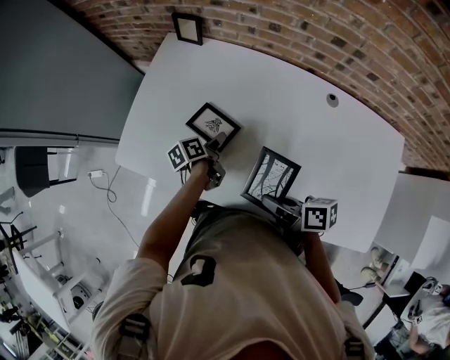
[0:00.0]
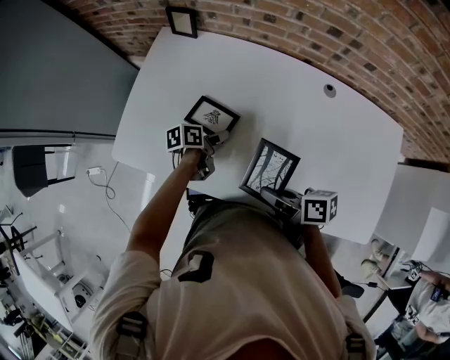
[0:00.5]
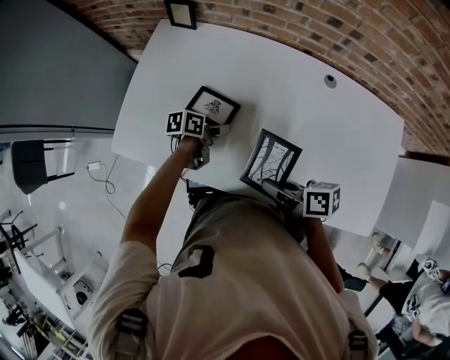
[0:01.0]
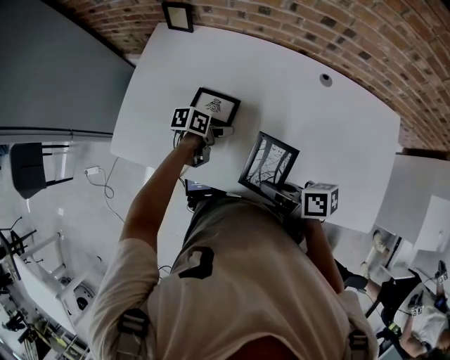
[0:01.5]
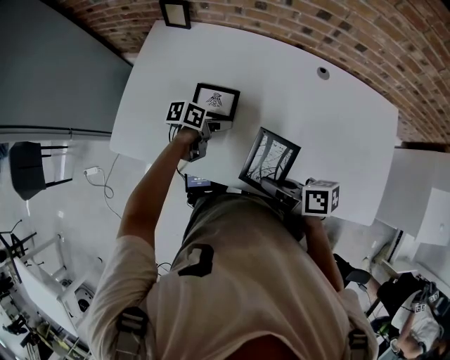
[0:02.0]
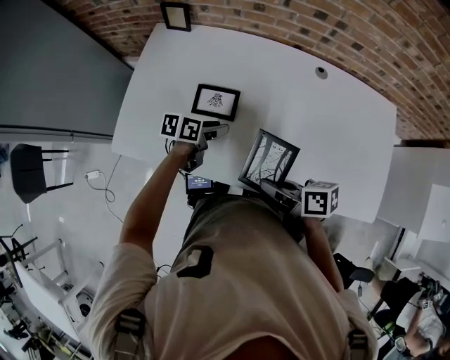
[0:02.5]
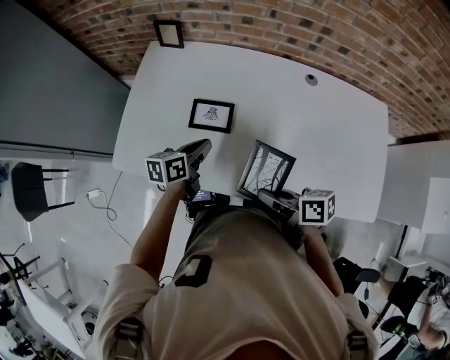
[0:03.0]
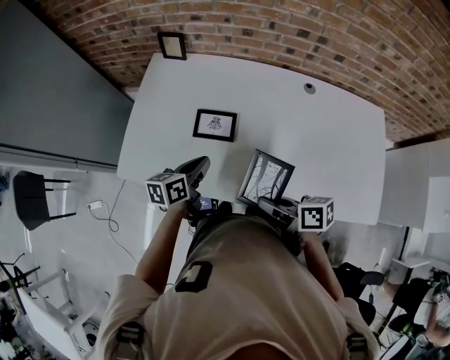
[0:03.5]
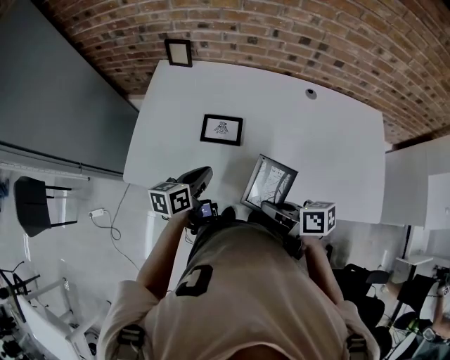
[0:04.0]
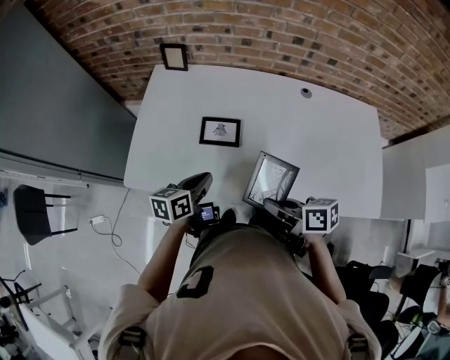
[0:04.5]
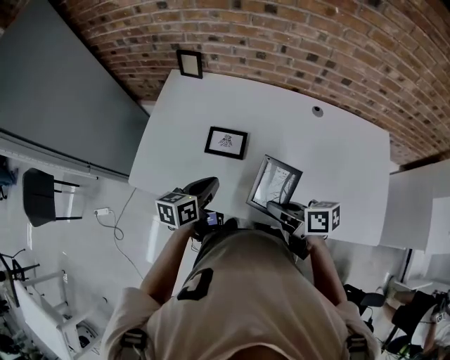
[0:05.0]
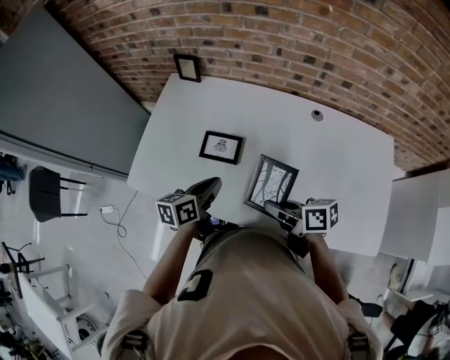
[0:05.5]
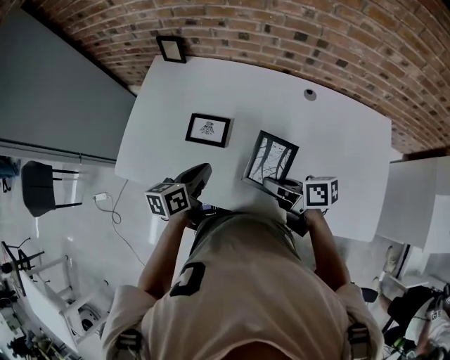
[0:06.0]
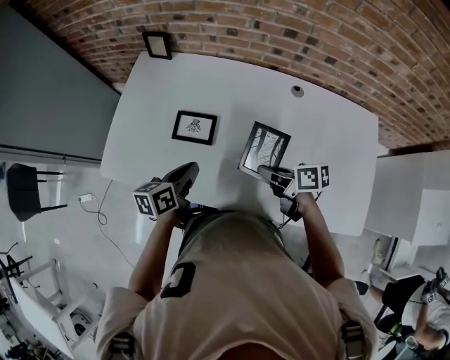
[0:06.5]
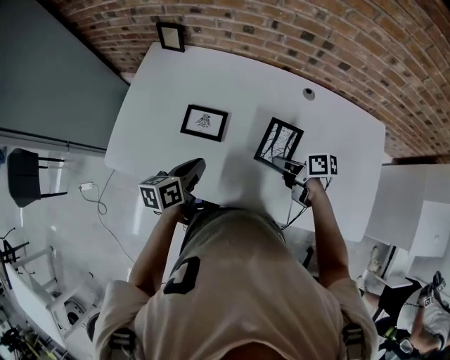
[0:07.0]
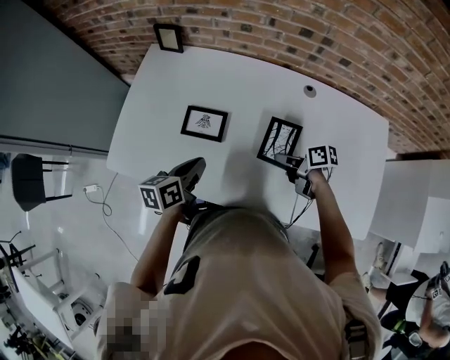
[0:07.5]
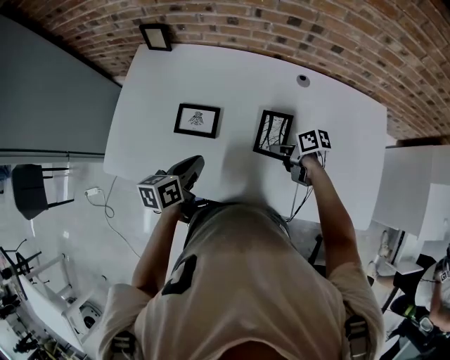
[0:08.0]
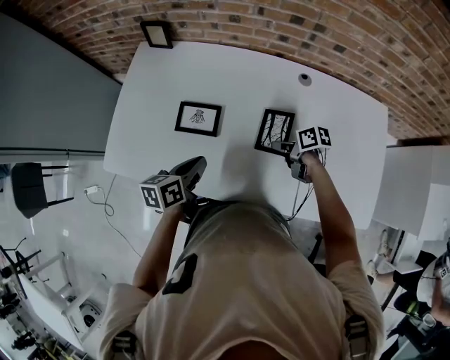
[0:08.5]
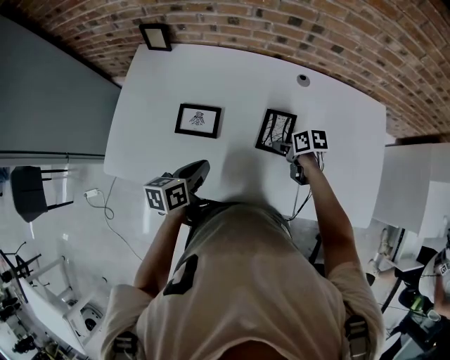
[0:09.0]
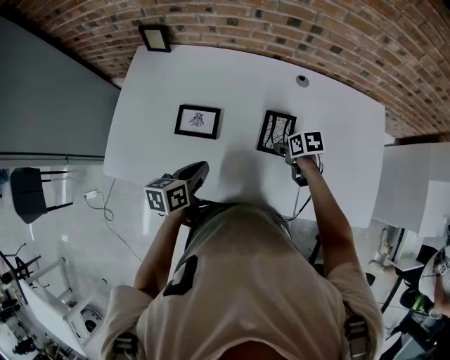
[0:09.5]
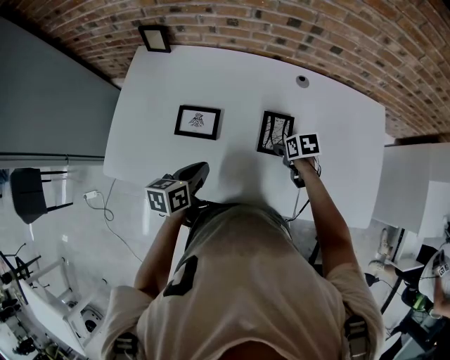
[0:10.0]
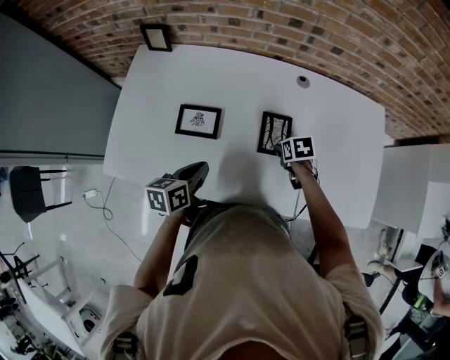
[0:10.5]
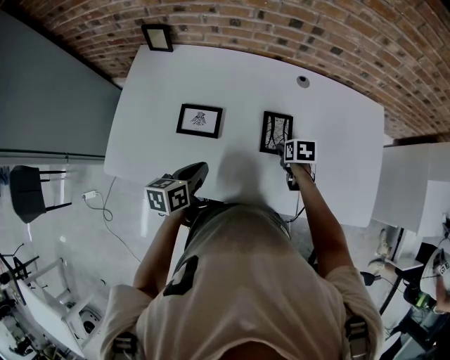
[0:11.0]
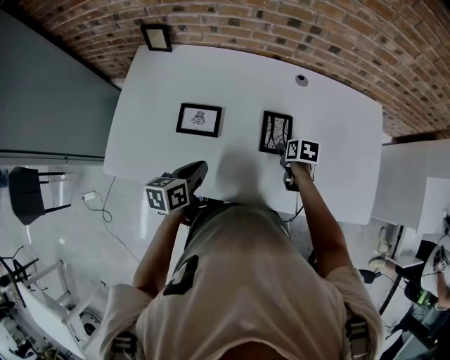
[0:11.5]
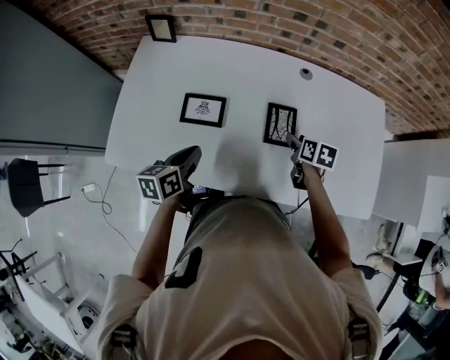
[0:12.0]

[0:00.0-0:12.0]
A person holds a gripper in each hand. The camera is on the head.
0:00.0 to 0:02.0: The left gripper moves some 5 cm, and swivels approximately 40 degrees.
0:02.0 to 0:04.0: The right gripper changes place by roughly 5 cm, while the left gripper ends up about 15 cm from where it was, changes its angle by some 30 degrees, and closes up.
0:04.0 to 0:06.0: The right gripper heads to the right and forward, covering approximately 15 cm. Meanwhile the left gripper is displaced to the right by approximately 10 cm.
0:06.0 to 0:08.0: The right gripper moves downward, to the right and forward, roughly 15 cm, and swivels about 20 degrees.
0:08.0 to 0:10.0: The right gripper shifts by about 5 cm, changes its angle by some 40 degrees, and opens its fingers.
0:10.0 to 0:12.0: The right gripper is displaced upward by about 5 cm, and turns by approximately 30 degrees.

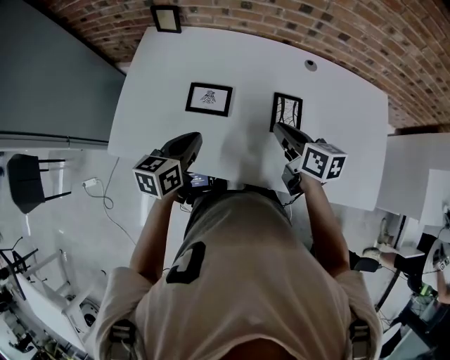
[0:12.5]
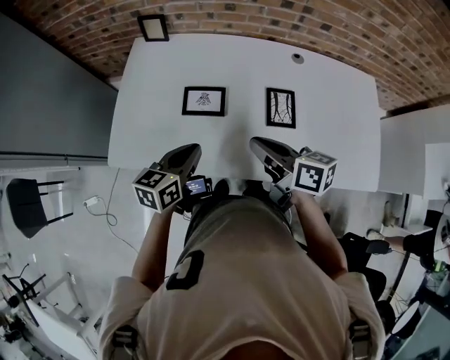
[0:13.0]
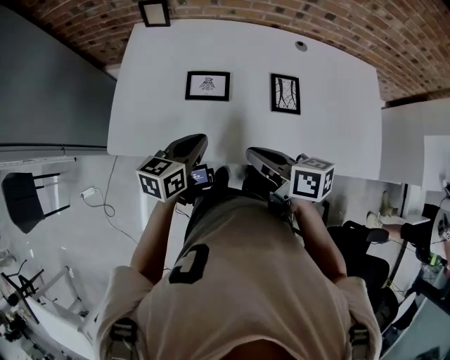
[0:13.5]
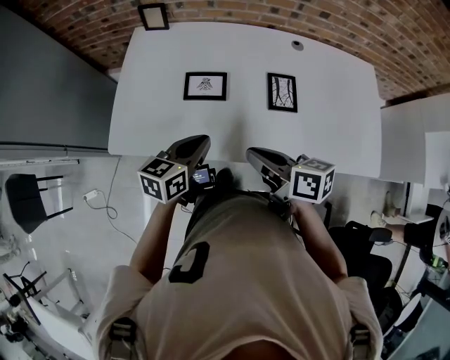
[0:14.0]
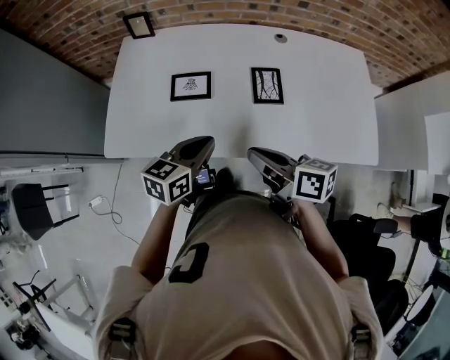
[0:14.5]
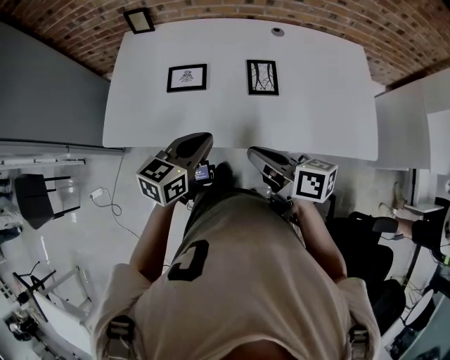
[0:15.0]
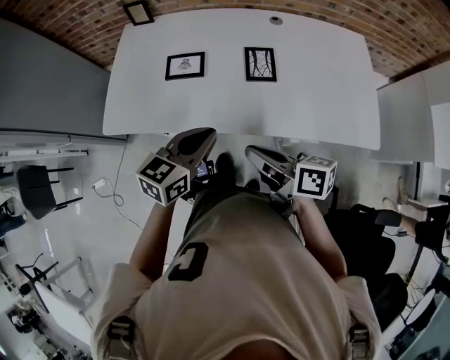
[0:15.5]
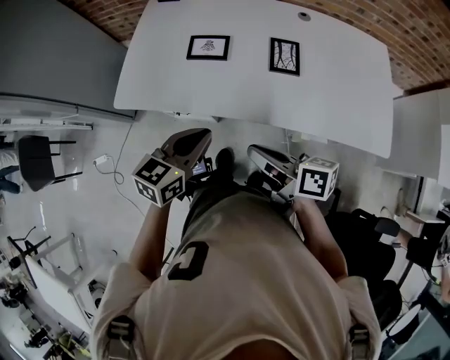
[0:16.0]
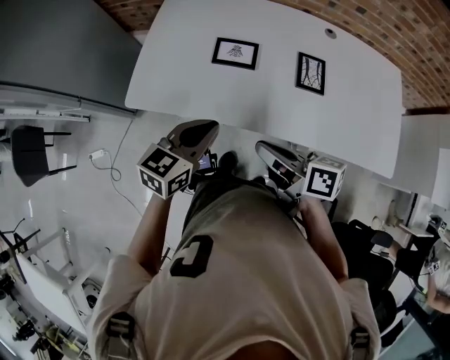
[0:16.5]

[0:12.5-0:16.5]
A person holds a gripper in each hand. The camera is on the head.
0:12.5 to 0:14.5: The left gripper heads backward and to the right, covering some 10 cm; the right gripper goes some 15 cm backward.
0:14.5 to 0:16.5: The two grippers go approximately 10 cm to the left.

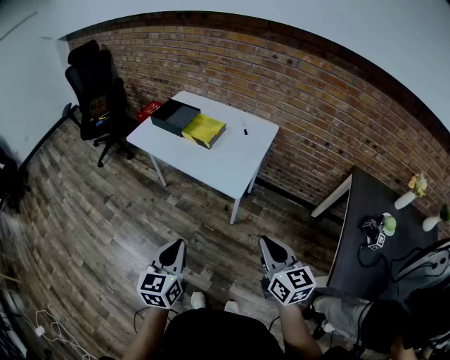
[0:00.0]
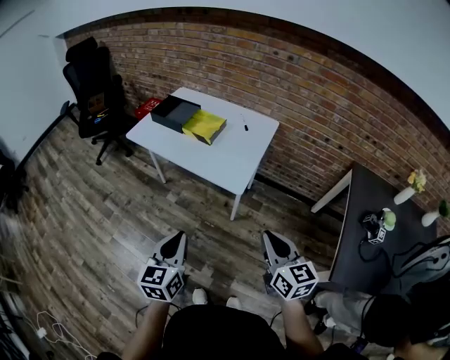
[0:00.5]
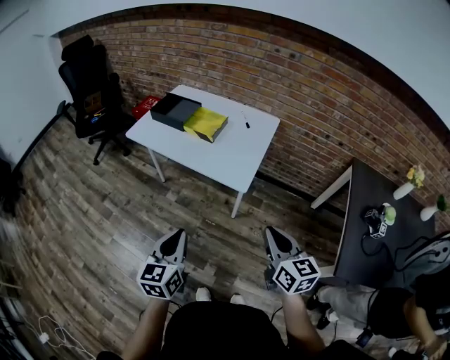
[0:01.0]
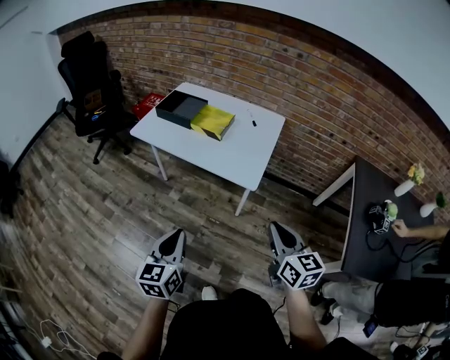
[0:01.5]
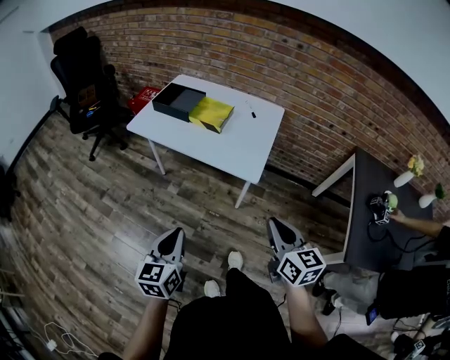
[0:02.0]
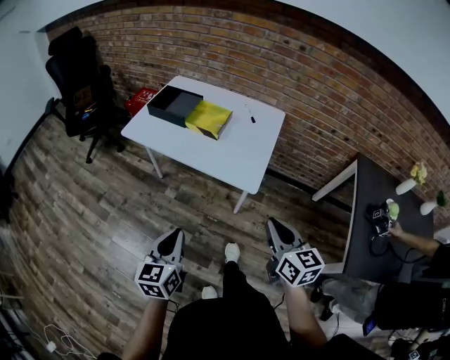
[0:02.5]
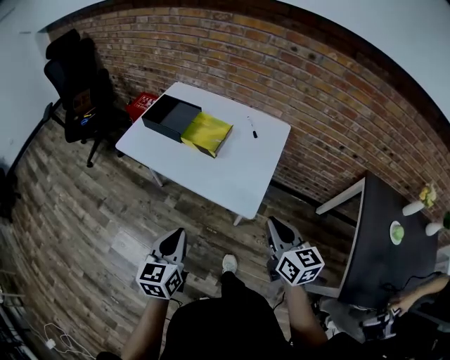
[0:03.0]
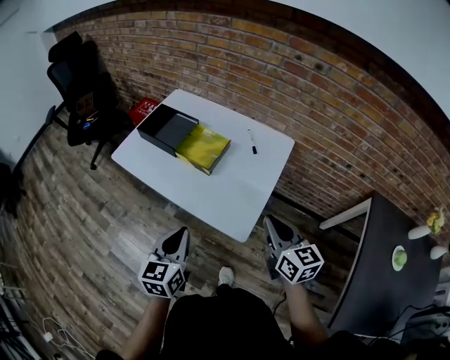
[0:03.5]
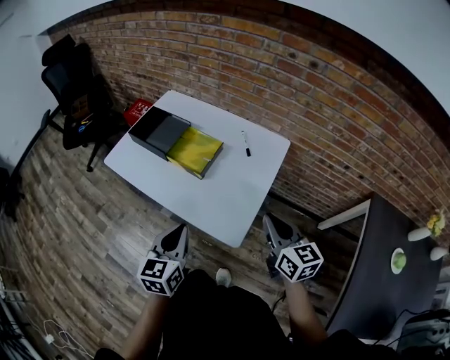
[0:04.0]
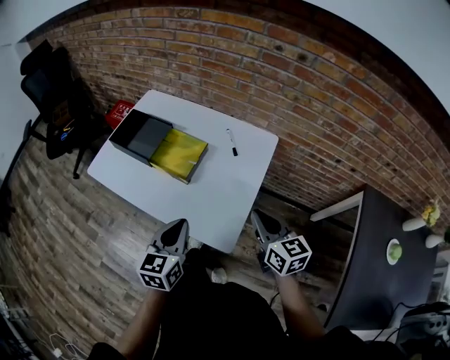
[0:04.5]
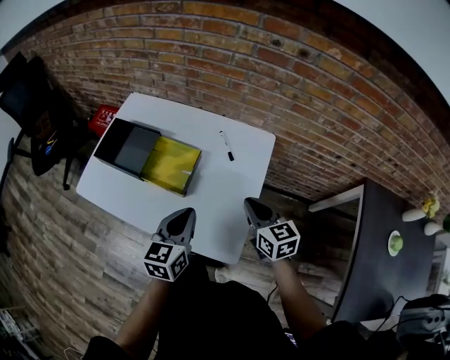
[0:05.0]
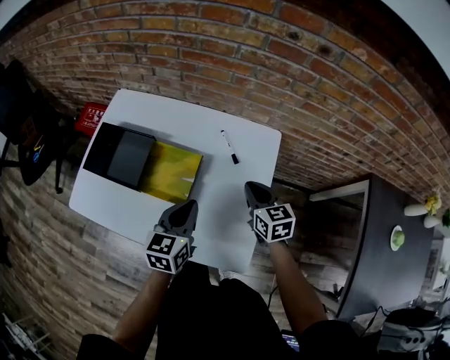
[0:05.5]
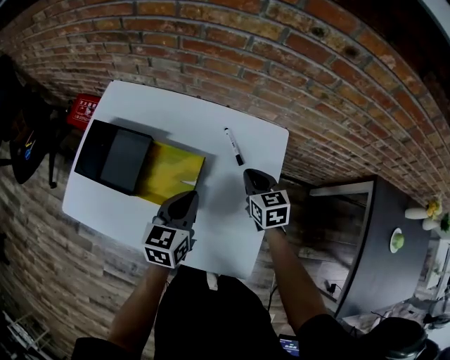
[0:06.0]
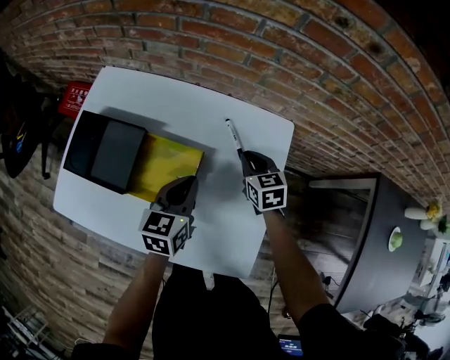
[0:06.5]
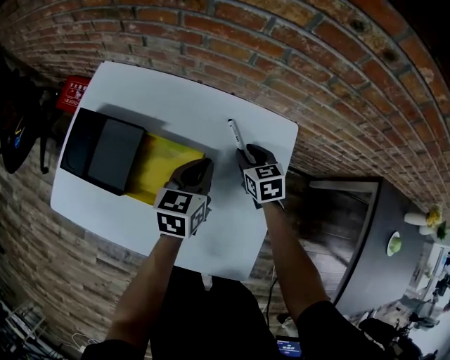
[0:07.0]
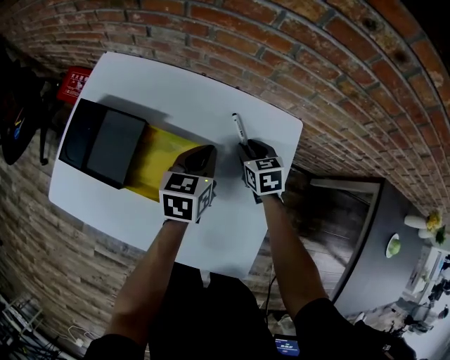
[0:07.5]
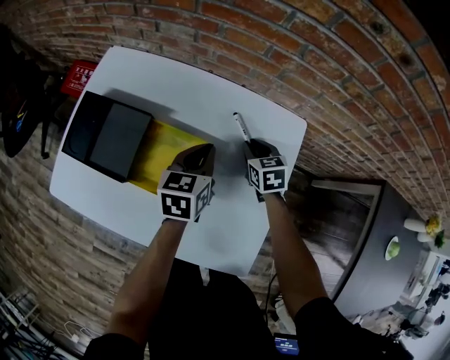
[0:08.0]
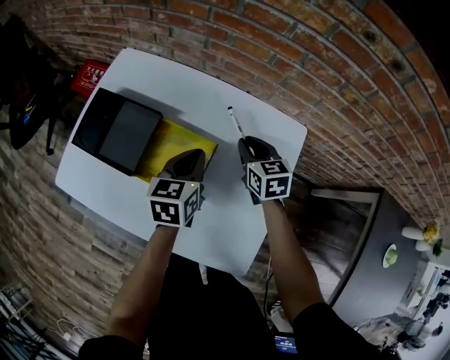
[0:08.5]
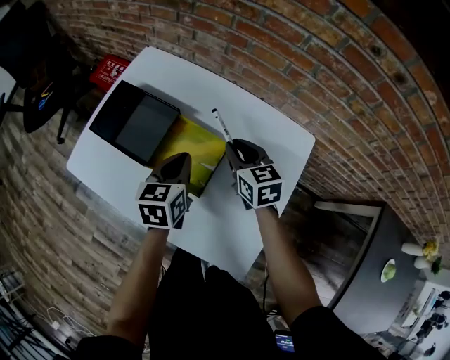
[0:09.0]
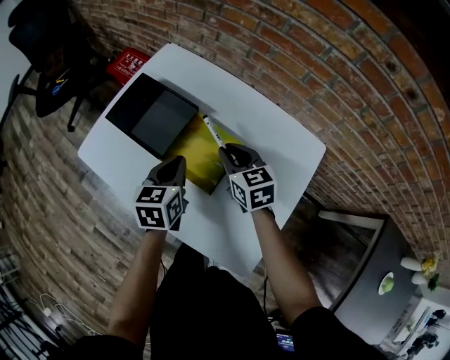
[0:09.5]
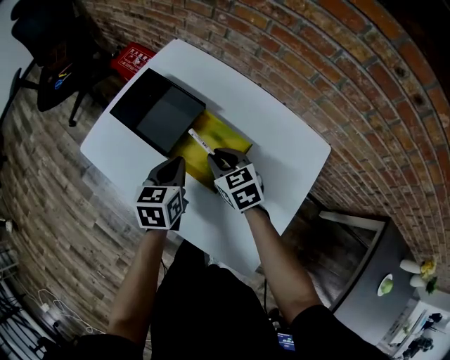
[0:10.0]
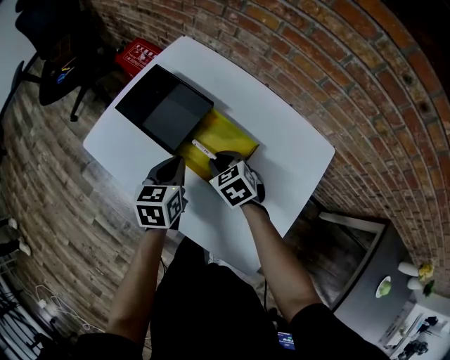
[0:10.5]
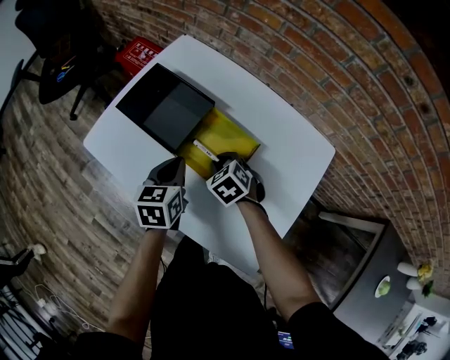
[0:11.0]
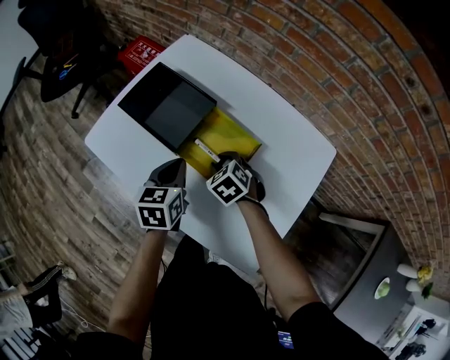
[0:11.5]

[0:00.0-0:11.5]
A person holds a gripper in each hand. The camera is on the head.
0:00.0 to 0:02.0: Both grippers move to the left, roughly 10 cm.
0:02.0 to 0:04.0: The left gripper heads forward and to the right, covering approximately 30 cm. The right gripper shifts about 30 cm forward.
0:04.0 to 0:06.0: The right gripper travels forward and downward by about 35 cm, and turns by roughly 30 degrees. Meanwhile the left gripper travels forward by roughly 30 cm, and swivels approximately 20 degrees.
0:06.0 to 0:07.5: The left gripper travels forward by roughly 10 cm, while the right gripper shifts some 10 cm downward and forward, and opens its fingers.
0:07.5 to 0:09.5: The right gripper travels to the left and upward by some 20 cm, and rotates approximately 30 degrees. The left gripper shifts some 20 cm to the left and backward, and rotates approximately 20 degrees.
0:09.5 to 0:11.5: The left gripper ends up about 5 cm from where it was. The right gripper goes about 15 cm downward and to the left, and rotates roughly 40 degrees.
